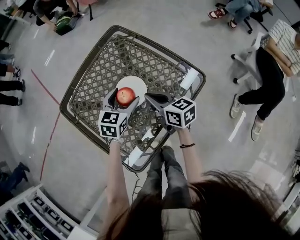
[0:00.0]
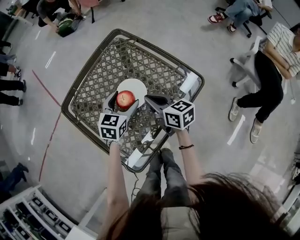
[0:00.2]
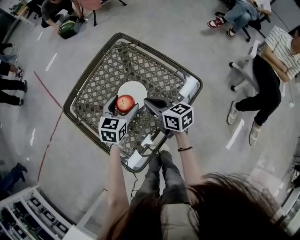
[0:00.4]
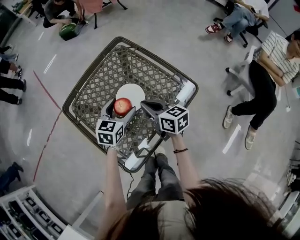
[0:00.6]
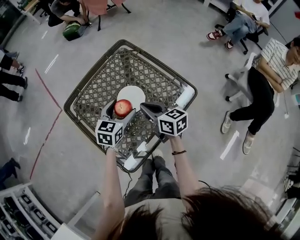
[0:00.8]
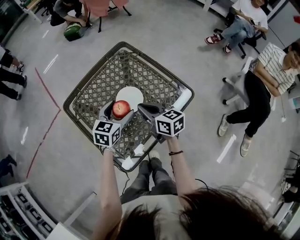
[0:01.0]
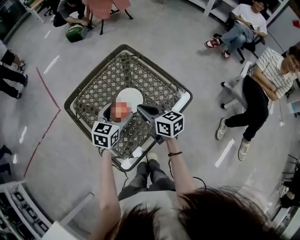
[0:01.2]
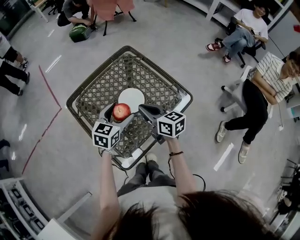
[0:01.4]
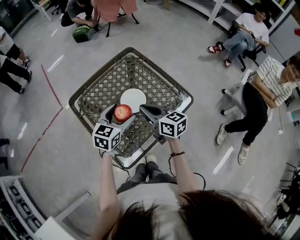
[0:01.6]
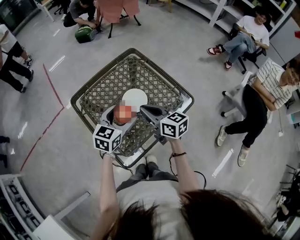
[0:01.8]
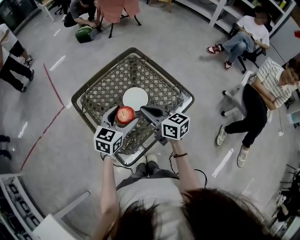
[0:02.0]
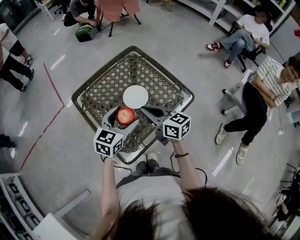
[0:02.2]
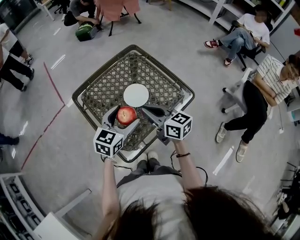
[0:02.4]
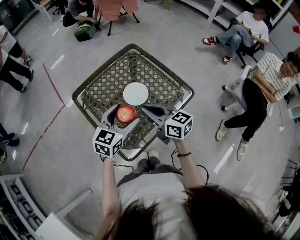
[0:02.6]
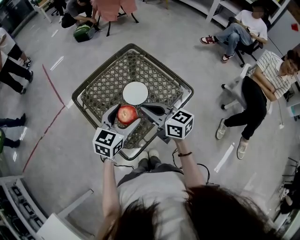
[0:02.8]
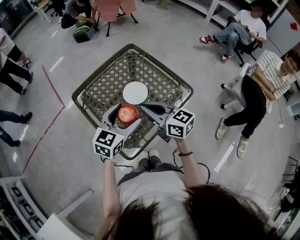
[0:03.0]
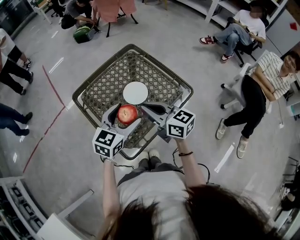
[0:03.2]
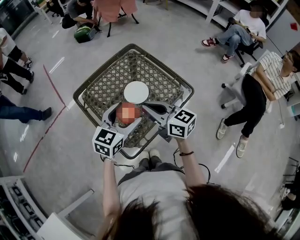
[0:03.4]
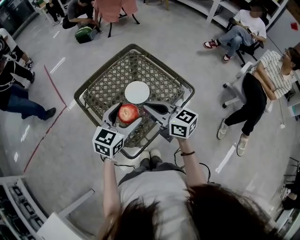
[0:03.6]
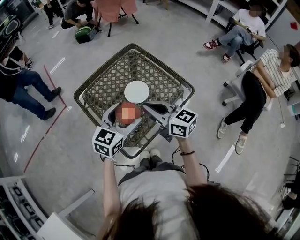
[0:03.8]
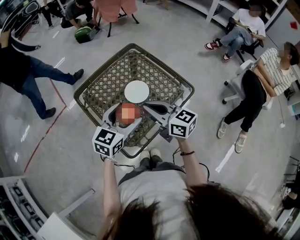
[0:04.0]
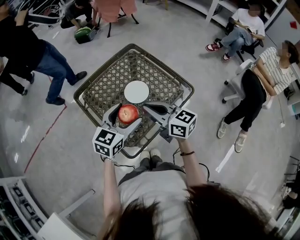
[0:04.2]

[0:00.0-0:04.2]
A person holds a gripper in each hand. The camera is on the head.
0:00.0 to 0:01.4: The right gripper moves upward, roughly 10 cm. The left gripper is displaced upward and backward by some 10 cm.
0:01.4 to 0:02.8: Both grippers travel together backward and upward, about 10 cm.
0:02.8 to 0:04.2: The grippers make only small movements.

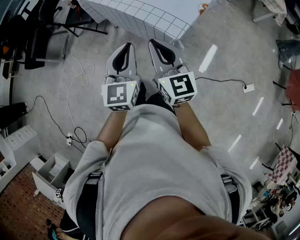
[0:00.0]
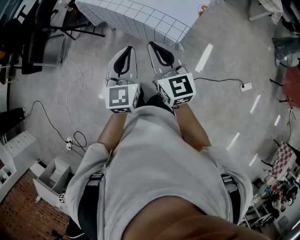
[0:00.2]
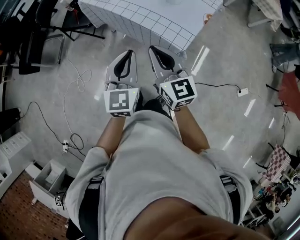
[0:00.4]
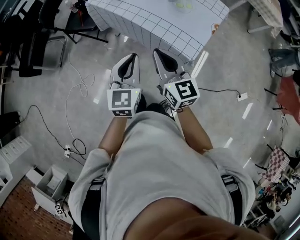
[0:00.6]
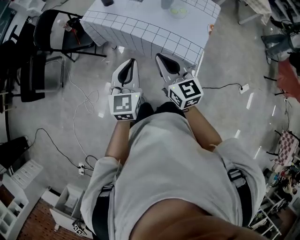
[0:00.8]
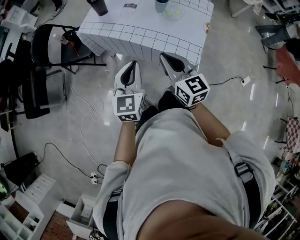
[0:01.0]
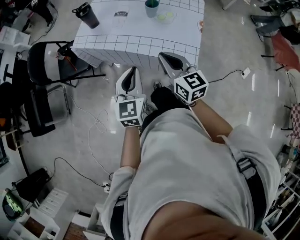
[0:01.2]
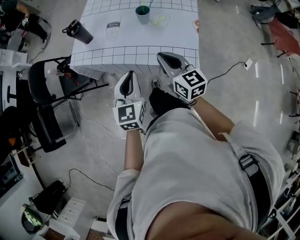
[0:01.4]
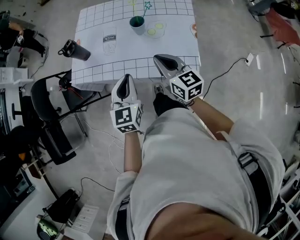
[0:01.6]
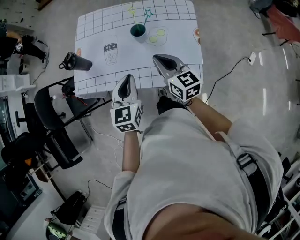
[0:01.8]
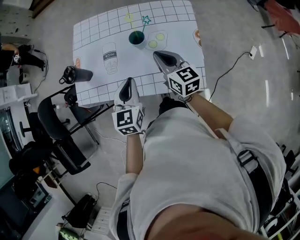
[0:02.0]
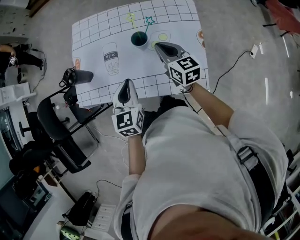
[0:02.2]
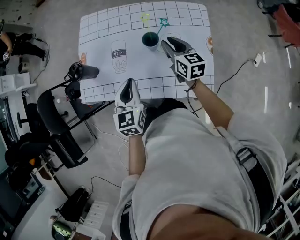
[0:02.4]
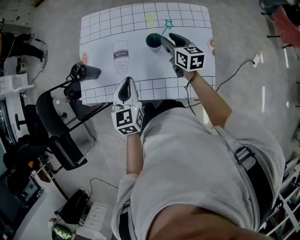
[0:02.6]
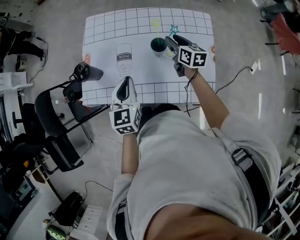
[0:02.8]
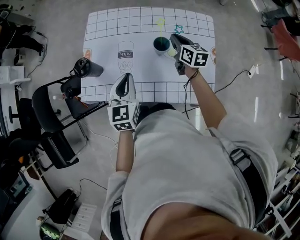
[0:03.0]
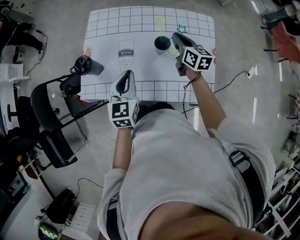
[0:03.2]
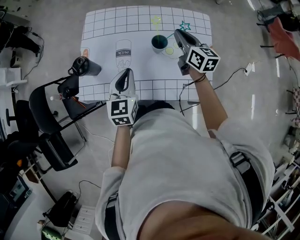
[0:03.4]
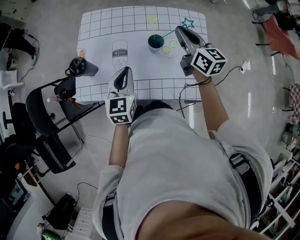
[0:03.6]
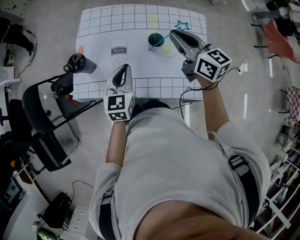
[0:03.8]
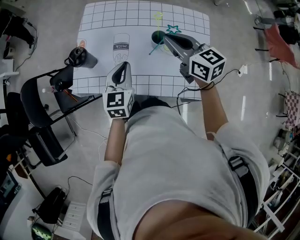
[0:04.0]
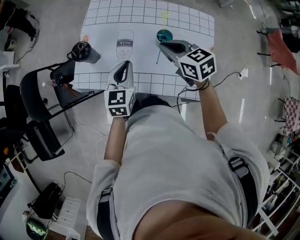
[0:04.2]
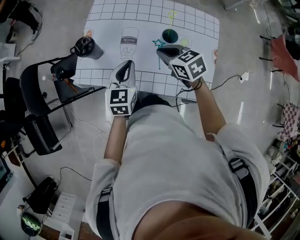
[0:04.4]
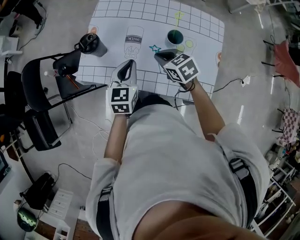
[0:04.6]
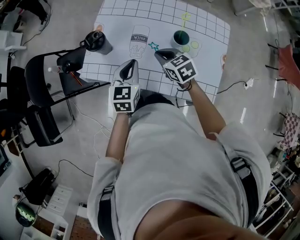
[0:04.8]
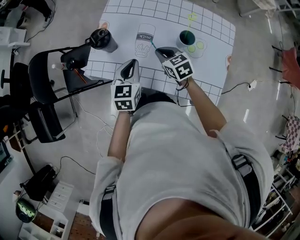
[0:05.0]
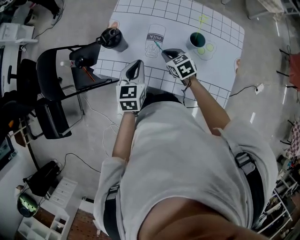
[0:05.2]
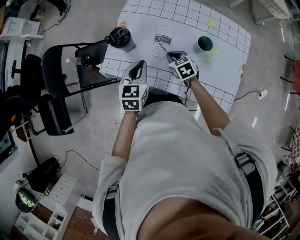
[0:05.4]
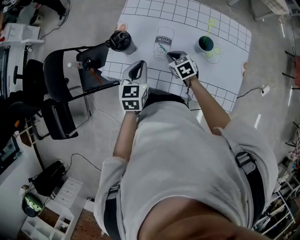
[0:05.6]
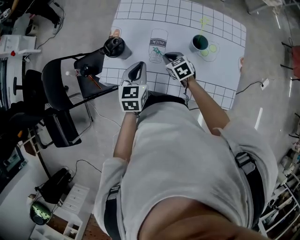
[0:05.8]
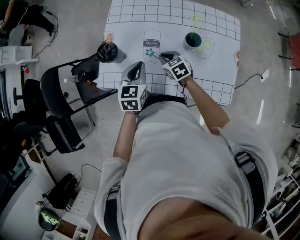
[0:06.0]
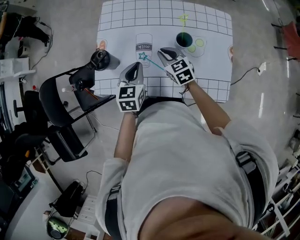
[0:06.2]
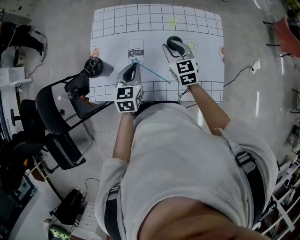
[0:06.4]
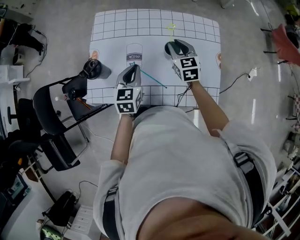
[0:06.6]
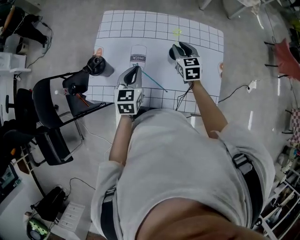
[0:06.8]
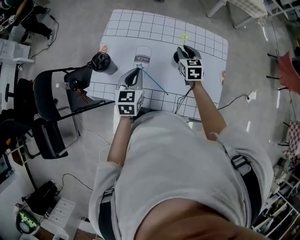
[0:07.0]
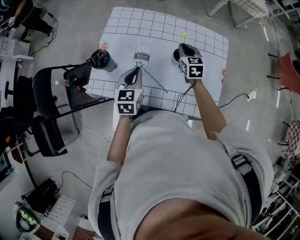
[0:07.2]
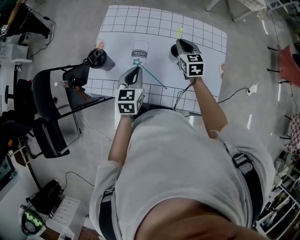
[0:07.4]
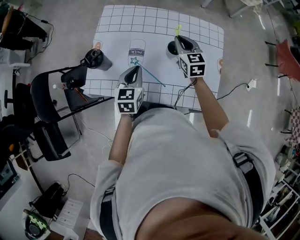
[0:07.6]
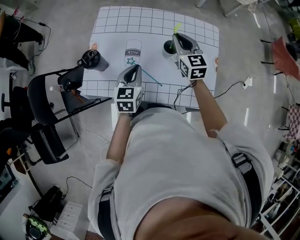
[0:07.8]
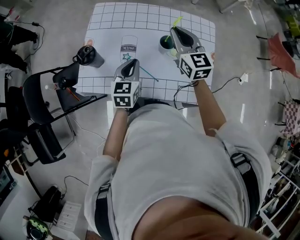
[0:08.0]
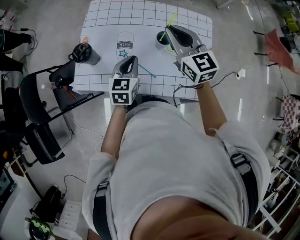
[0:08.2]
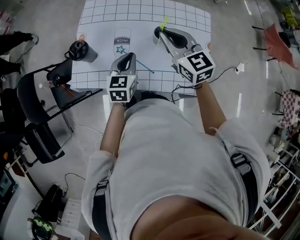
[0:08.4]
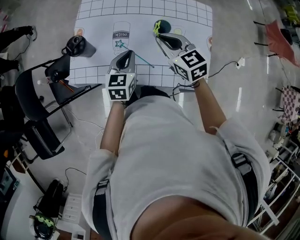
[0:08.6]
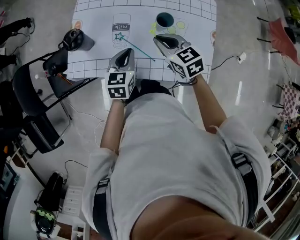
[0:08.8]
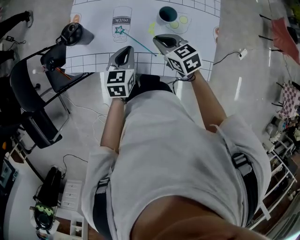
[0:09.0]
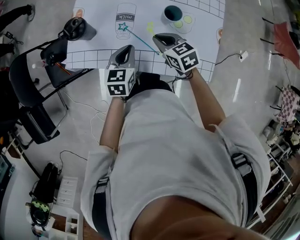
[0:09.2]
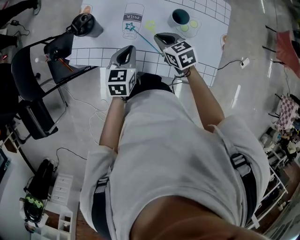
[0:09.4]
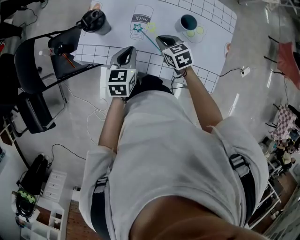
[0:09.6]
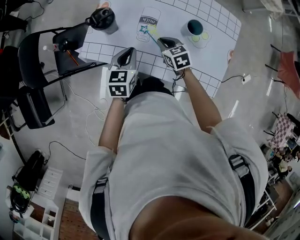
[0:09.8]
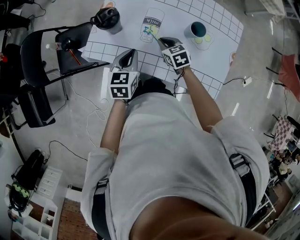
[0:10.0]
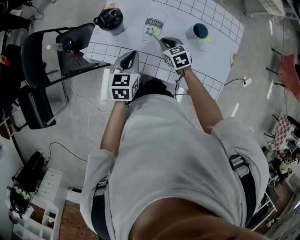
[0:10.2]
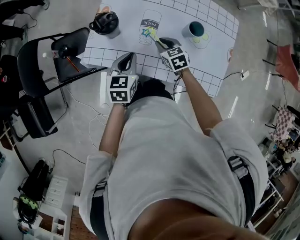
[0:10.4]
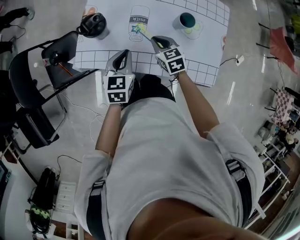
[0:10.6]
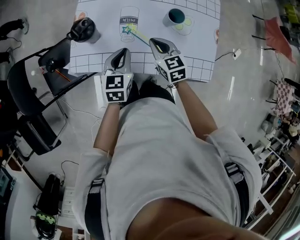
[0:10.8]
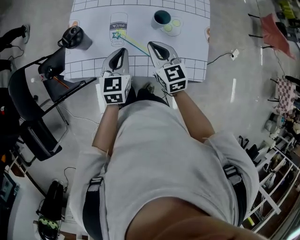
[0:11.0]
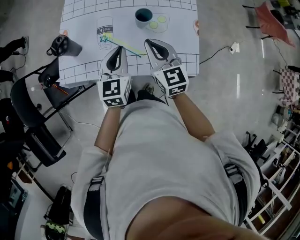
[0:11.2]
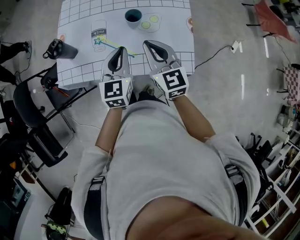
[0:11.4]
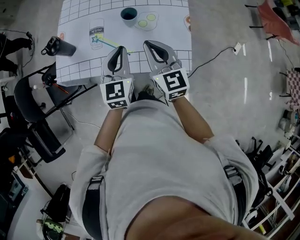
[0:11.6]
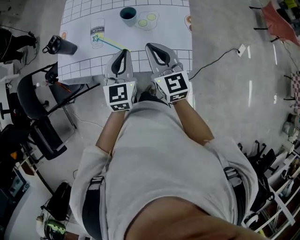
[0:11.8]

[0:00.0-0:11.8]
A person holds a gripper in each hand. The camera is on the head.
0:00.0 to 0:01.4: The right gripper shifts some 25 cm forward, and turns by approximately 20 degrees, while the left gripper heads forward and to the left, covering about 25 cm, and changes its angle by about 20 degrees.
0:01.4 to 0:03.0: Both grippers travel together forward, some 30 cm. The right gripper rotates about 30 degrees, and opens, then closes once more.
0:03.0 to 0:04.4: The right gripper moves to the left and backward, approximately 15 cm, reaches about 15 cm upward, then returns, and swivels approximately 40 degrees.
0:04.4 to 0:06.0: The left gripper shifts by approximately 10 cm. The right gripper heads downward and to the left, covering some 15 cm.
0:06.0 to 0:07.4: The left gripper goes about 5 cm to the right, while the right gripper heads to the right, upward and forward, covering roughly 20 cm, and swivels approximately 30 degrees.
0:07.4 to 0:08.8: The left gripper changes place by some 5 cm; the right gripper is displaced backward and to the left by roughly 15 cm, reaches about 15 cm upward, then returns, and rotates approximately 20 degrees.
0:08.8 to 0:10.4: The left gripper travels to the left by about 10 cm. The right gripper shifts about 15 cm downward and to the left.
0:10.4 to 0:11.8: The right gripper shifts roughly 35 cm upward, to the right and backward, and points its fingers roughly 40 degrees further upward, while the left gripper shifts roughly 25 cm to the right and upward, and changes its angle by some 20 degrees.

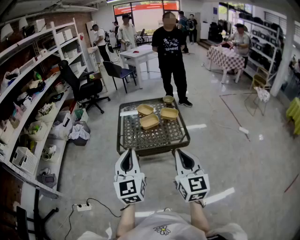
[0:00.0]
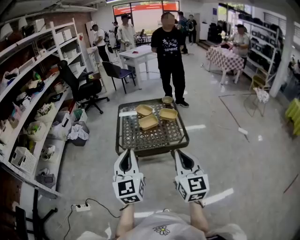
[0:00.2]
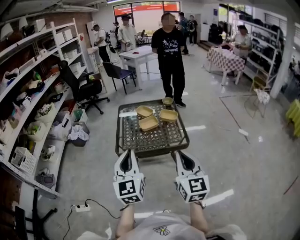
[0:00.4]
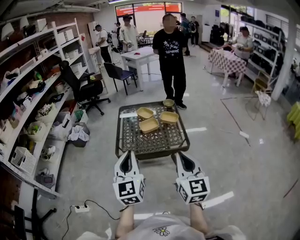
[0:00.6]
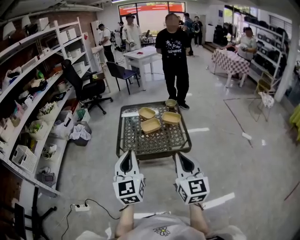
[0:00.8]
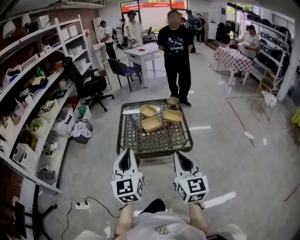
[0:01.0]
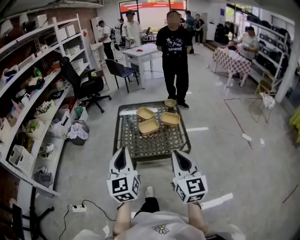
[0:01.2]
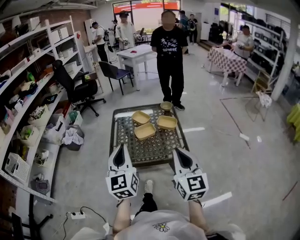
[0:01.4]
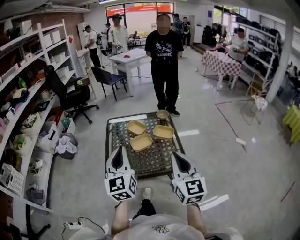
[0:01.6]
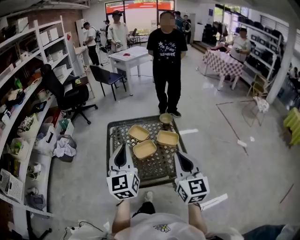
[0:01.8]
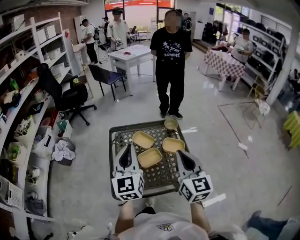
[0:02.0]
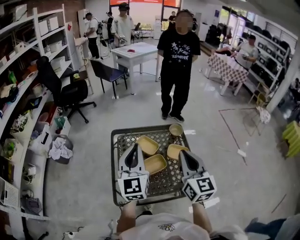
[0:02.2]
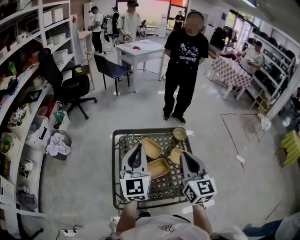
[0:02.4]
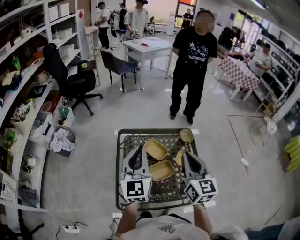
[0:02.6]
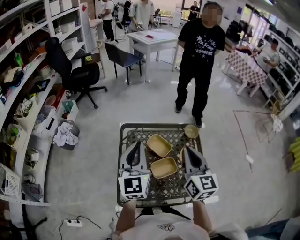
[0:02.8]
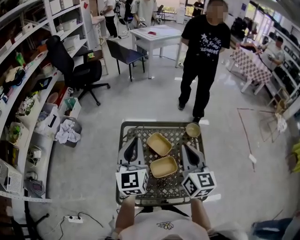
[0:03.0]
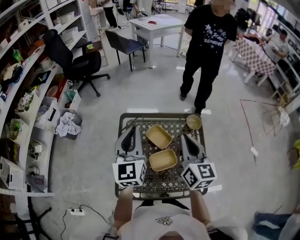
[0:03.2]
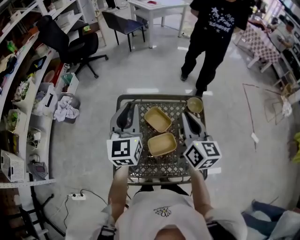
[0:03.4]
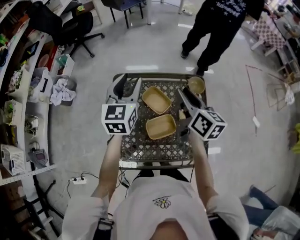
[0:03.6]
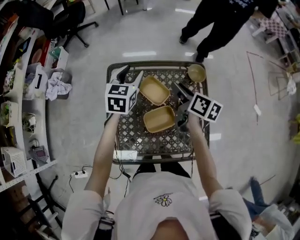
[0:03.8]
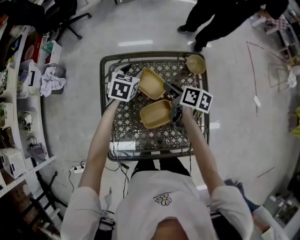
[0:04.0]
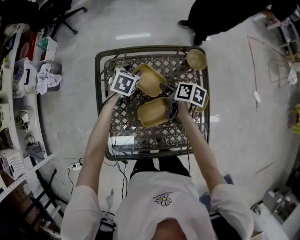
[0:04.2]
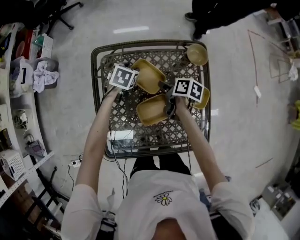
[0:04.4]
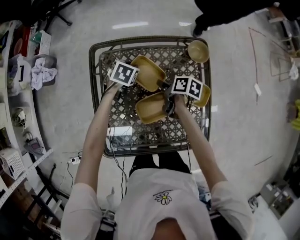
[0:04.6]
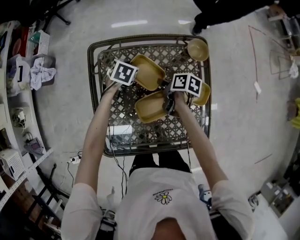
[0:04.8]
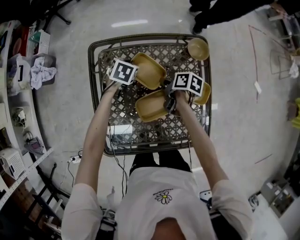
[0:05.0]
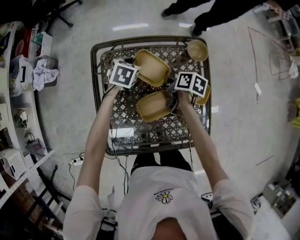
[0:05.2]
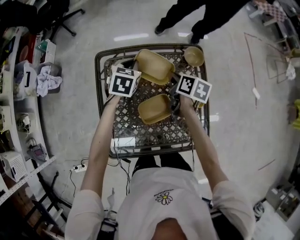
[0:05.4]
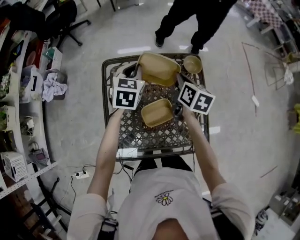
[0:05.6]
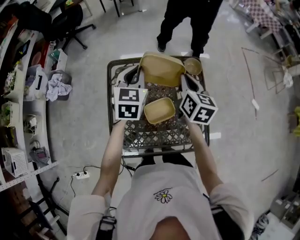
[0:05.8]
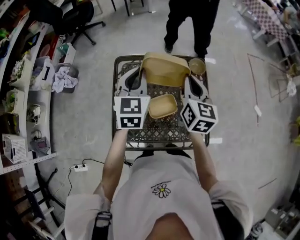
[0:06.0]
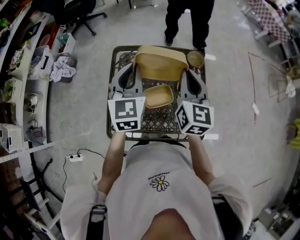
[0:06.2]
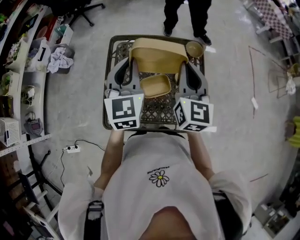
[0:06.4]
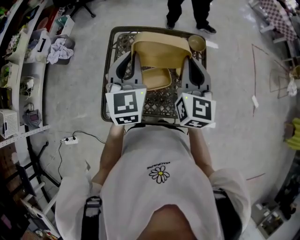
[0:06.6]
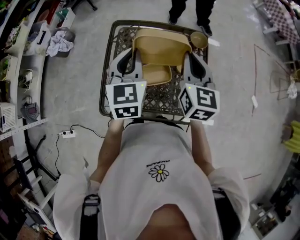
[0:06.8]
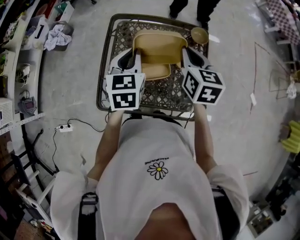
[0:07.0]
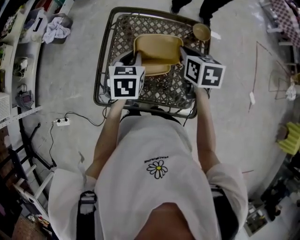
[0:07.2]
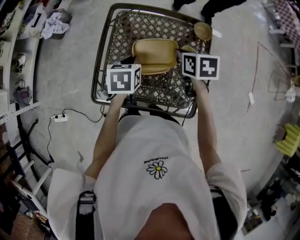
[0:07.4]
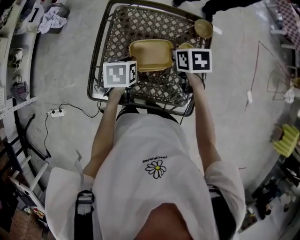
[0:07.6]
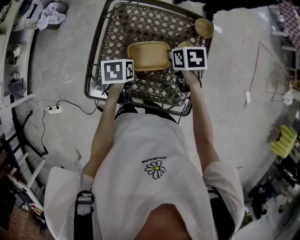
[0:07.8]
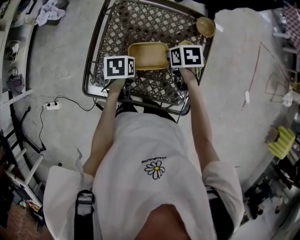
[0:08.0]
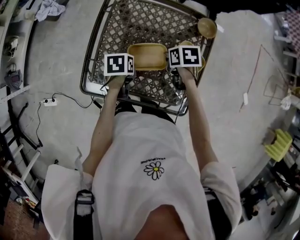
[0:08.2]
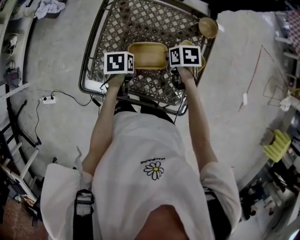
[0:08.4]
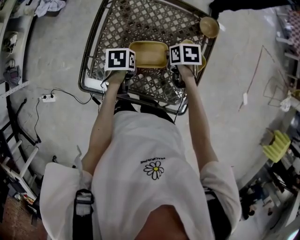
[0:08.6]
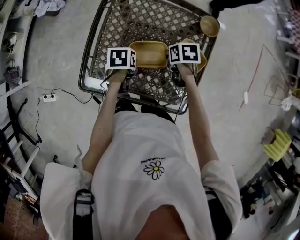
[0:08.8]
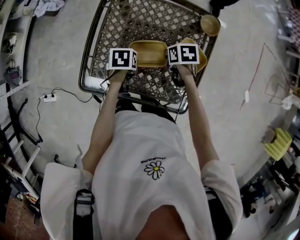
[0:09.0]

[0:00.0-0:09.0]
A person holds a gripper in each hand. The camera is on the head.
0:00.0 to 0:01.6: Both grippers travel together forward, approximately 20 cm.
0:01.6 to 0:03.0: The grippers both shift forward by roughly 35 cm.
0:03.0 to 0:04.4: The left gripper travels downward and forward by about 40 cm, tips its fingers downward by roughly 60 degrees, and opens; the right gripper goes approximately 35 cm downward, angles its fingers downward, by about 40 degrees, and opens up.
0:04.4 to 0:06.0: The grippers both shift upward by approximately 30 cm. The left gripper tilts its fingers approximately 40 degrees upward, and closes up. The right gripper angles its fingers upward, by some 30 degrees, and closes.
0:06.0 to 0:07.6: The left gripper shifts approximately 25 cm downward and backward, and angles its fingers downward, by about 40 degrees; the right gripper travels downward by about 20 cm, and angles its fingers downward, by about 40 degrees.
0:07.6 to 0:09.0: The two grippers go about 10 cm downward.
